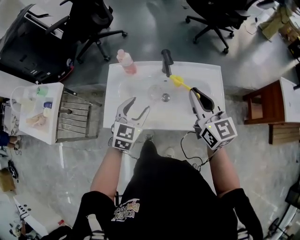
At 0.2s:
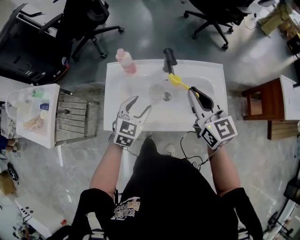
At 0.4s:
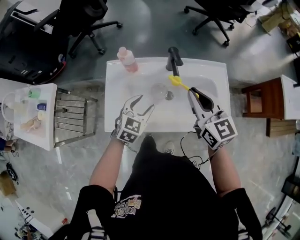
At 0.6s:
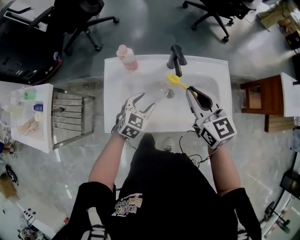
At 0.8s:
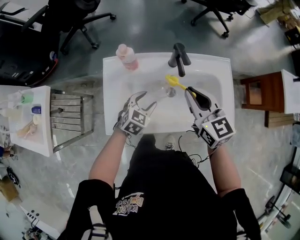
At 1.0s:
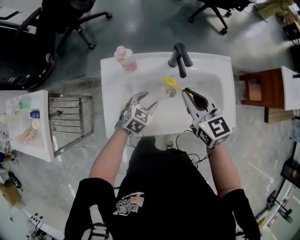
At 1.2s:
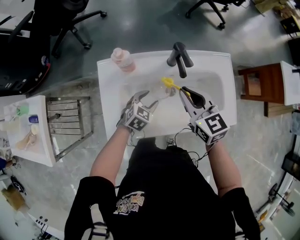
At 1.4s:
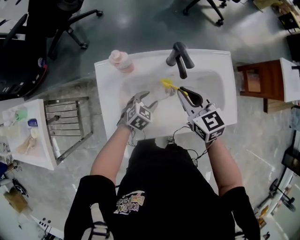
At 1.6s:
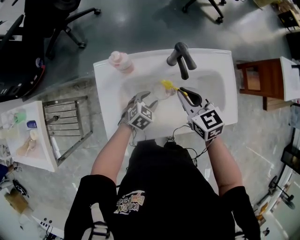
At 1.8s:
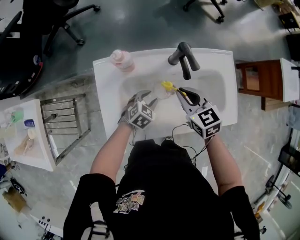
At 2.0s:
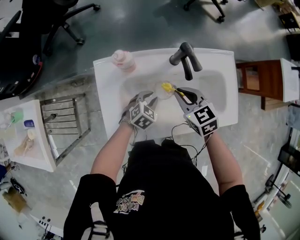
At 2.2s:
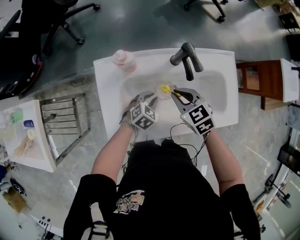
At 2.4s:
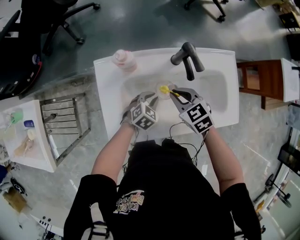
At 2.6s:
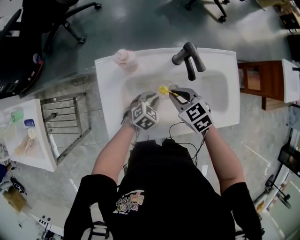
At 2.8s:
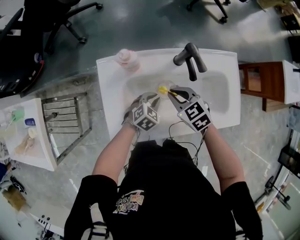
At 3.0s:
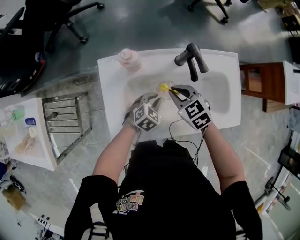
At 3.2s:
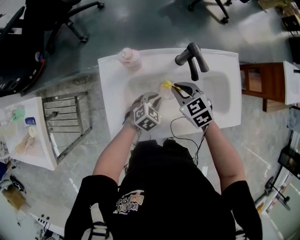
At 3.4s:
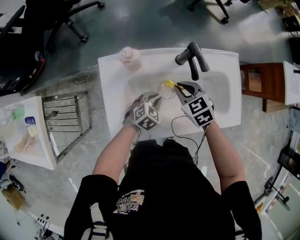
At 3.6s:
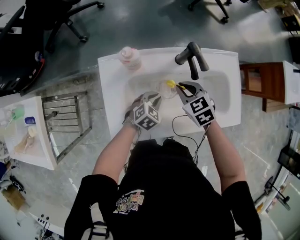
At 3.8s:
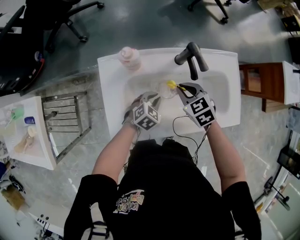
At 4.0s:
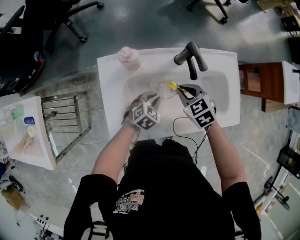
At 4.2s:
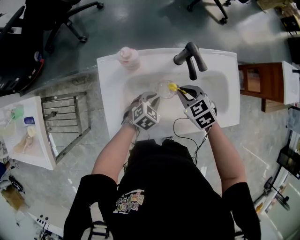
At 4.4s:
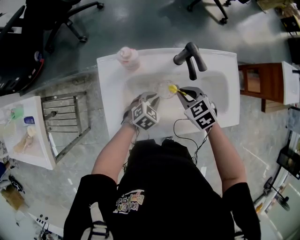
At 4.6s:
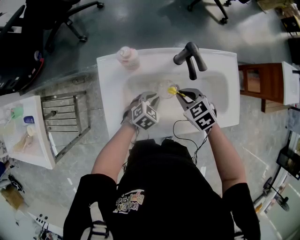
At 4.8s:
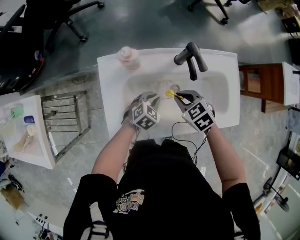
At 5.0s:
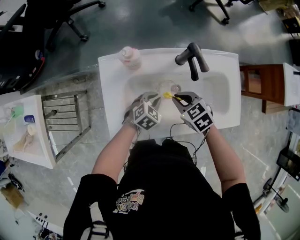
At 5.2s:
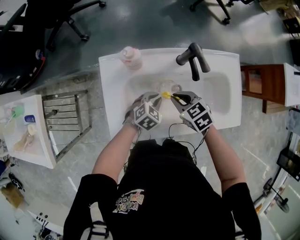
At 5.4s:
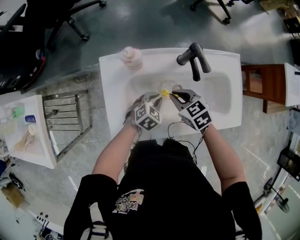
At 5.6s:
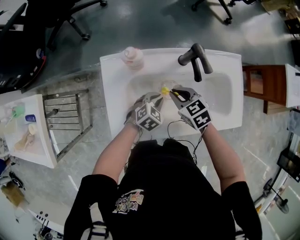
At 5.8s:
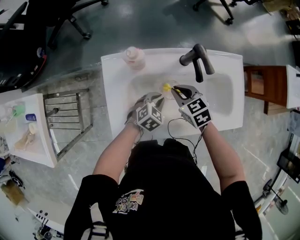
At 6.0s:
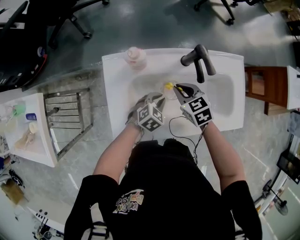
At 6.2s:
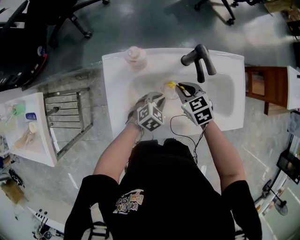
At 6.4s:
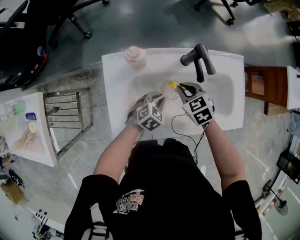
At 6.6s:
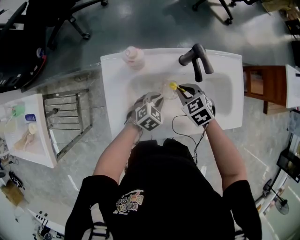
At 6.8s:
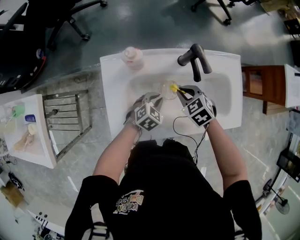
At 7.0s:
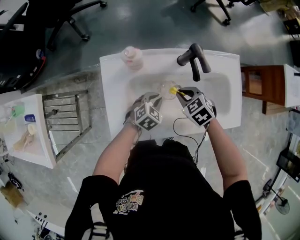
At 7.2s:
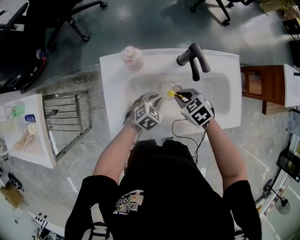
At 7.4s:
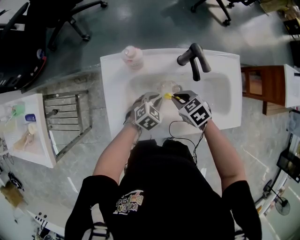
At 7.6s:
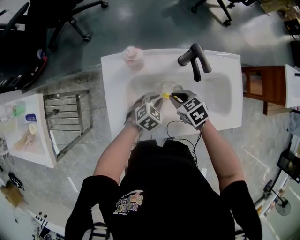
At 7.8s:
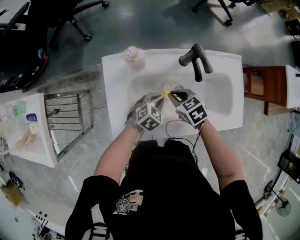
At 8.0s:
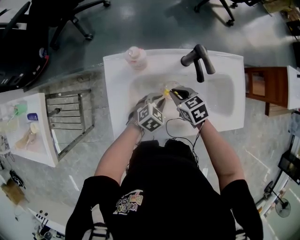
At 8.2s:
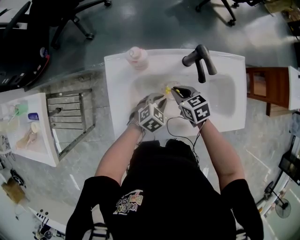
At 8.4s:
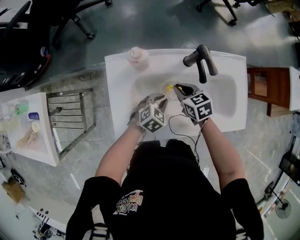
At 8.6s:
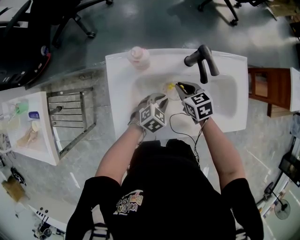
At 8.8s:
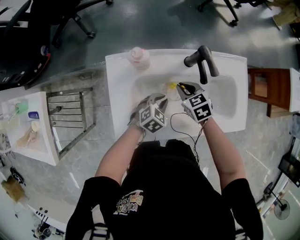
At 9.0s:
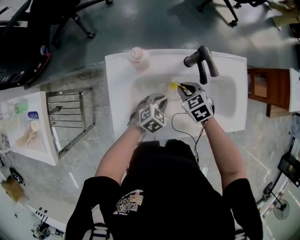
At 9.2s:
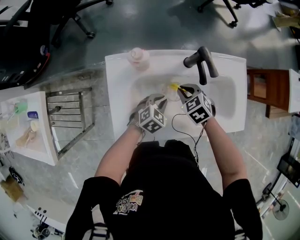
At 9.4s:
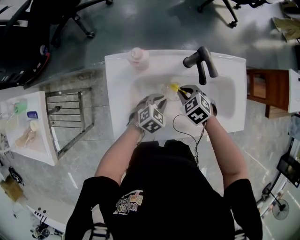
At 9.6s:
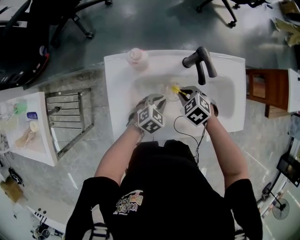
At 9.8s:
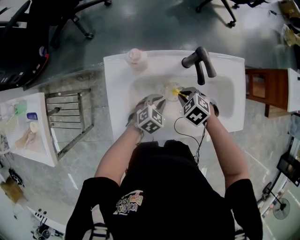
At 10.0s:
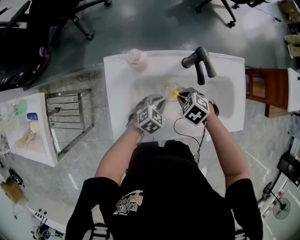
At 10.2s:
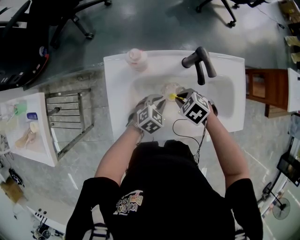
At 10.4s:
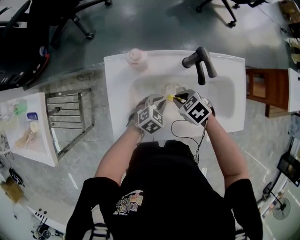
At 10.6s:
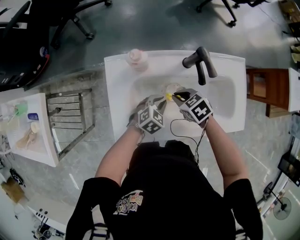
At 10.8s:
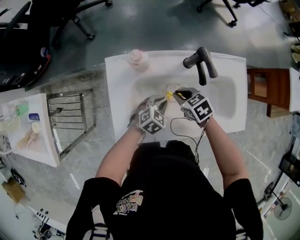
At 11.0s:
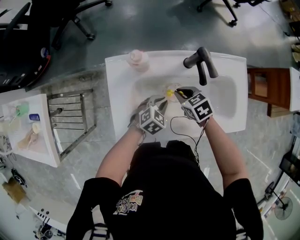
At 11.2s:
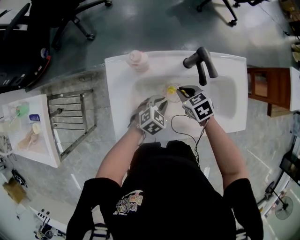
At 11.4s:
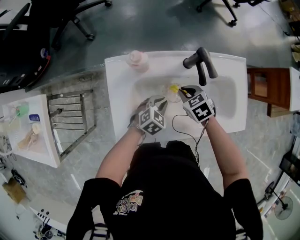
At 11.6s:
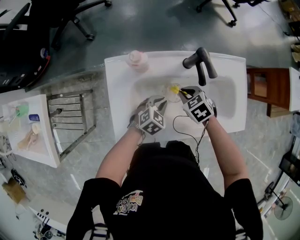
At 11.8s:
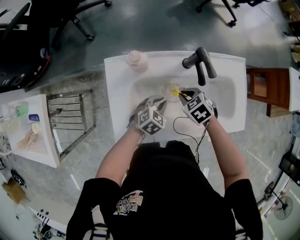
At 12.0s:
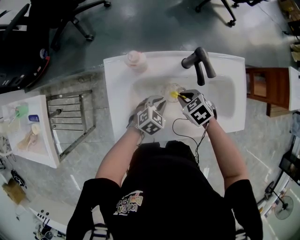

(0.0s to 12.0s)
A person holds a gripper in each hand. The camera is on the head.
0.0s - 1.6s: The right gripper moves downward, to the left and forward, roughly 20 cm, and rotates some 30 degrees. The left gripper travels downward by about 25 cm, and rotates roughly 40 degrees.
1.6s - 3.0s: The left gripper closes. Meanwhile the right gripper travels downward and to the left by about 10 cm, and turns by some 20 degrees.
3.0s - 7.6s: The grippers stay close to where they were, moving slightly.
7.6s - 9.0s: The right gripper shifts by about 5 cm.
9.0s - 10.4s: The right gripper shifts by approximately 5 cm.
10.4s - 12.0s: The grippers move only a little.

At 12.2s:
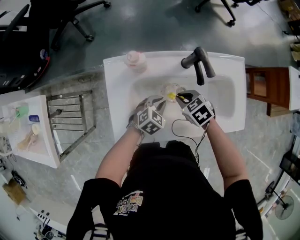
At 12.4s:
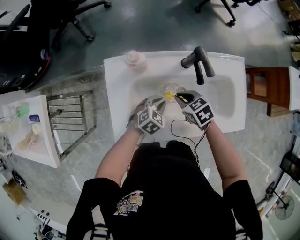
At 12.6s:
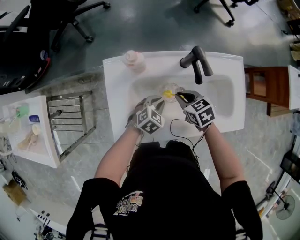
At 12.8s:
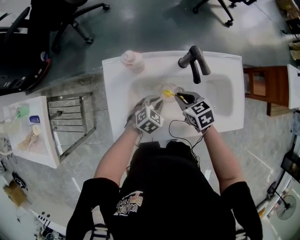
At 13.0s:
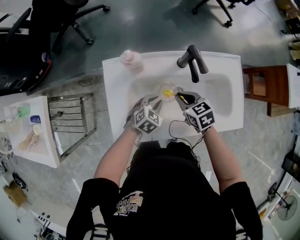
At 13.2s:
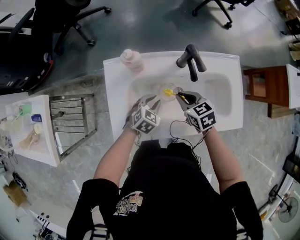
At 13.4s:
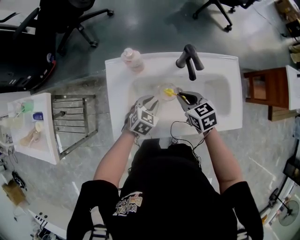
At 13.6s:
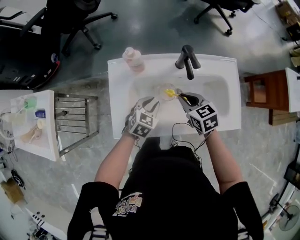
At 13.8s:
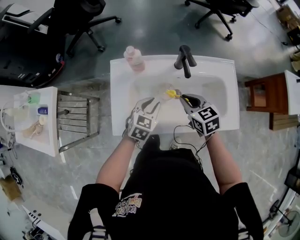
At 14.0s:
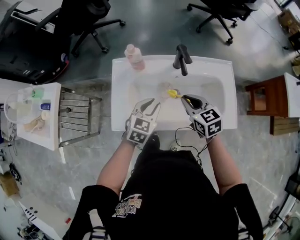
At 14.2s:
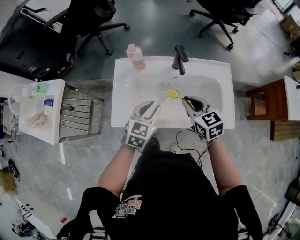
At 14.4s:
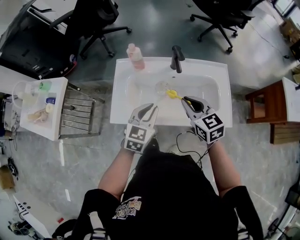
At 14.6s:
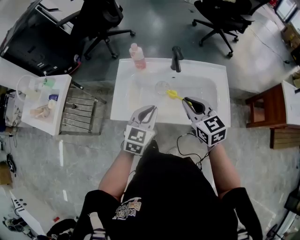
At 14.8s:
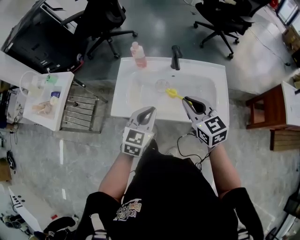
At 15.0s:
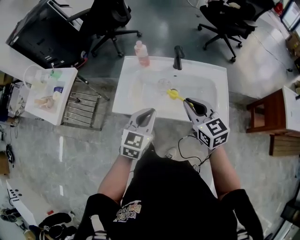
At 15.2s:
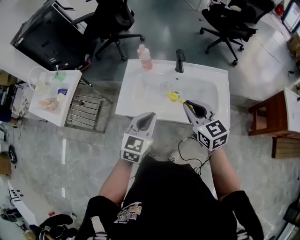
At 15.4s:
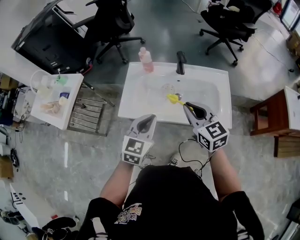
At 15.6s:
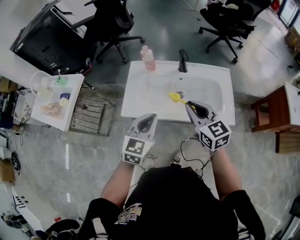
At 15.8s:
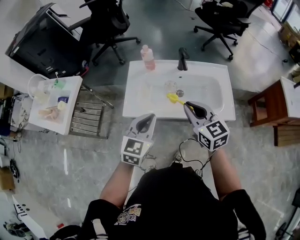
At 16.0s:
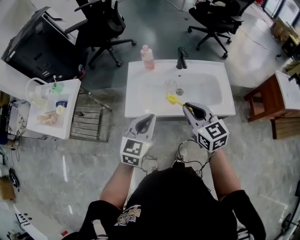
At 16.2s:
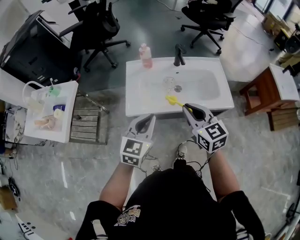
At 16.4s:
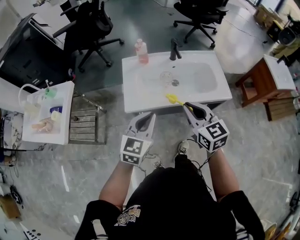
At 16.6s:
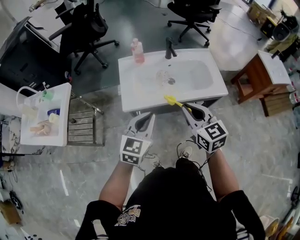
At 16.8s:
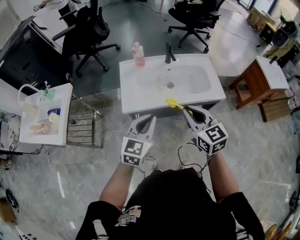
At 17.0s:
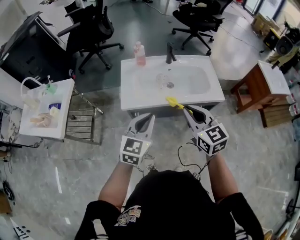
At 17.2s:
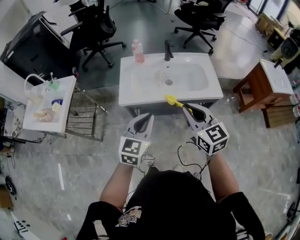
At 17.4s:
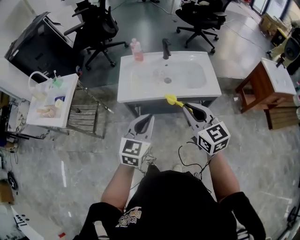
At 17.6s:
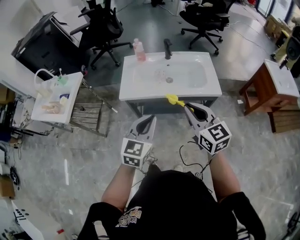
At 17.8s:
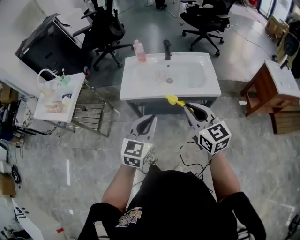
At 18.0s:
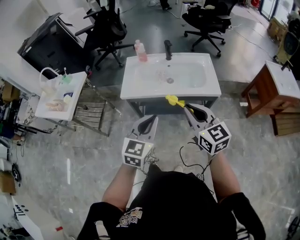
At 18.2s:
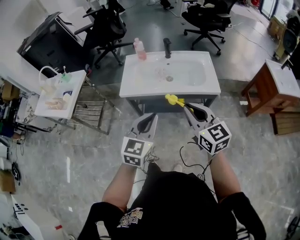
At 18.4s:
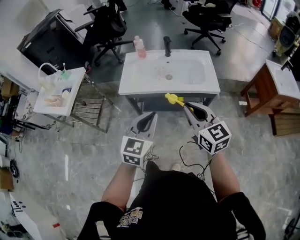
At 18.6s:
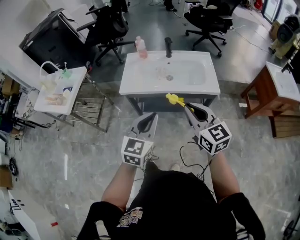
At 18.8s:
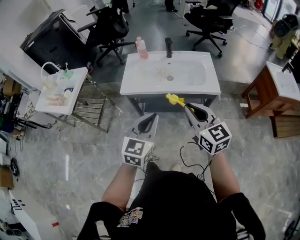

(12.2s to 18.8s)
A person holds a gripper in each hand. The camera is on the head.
12.2s - 13.8s: The grippers both shift upward by roughly 10 cm. The right gripper swivels roughly 30 degrees. Meanwhile the left gripper rotates roughly 20 degrees.
13.8s - 15.4s: The right gripper shifts about 25 cm upward and backward, and changes its angle by about 30 degrees. Meanwhile the left gripper shifts roughly 25 cm backward and upward, and rotates approximately 20 degrees.
15.4s - 17.2s: The grippers both shift backward by roughly 15 cm.
17.2s - 18.8s: The two grippers go roughly 15 cm backward and to the right.

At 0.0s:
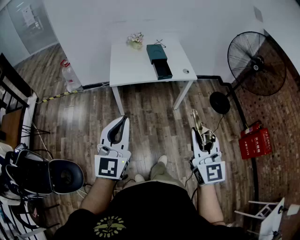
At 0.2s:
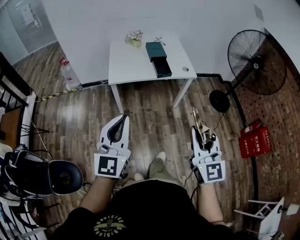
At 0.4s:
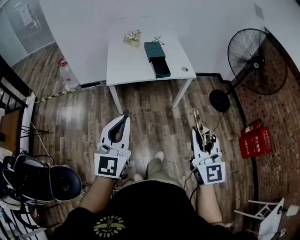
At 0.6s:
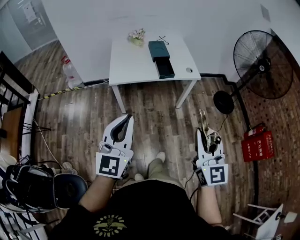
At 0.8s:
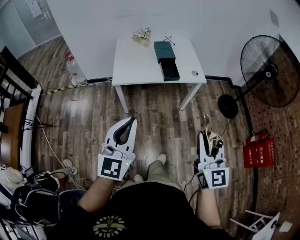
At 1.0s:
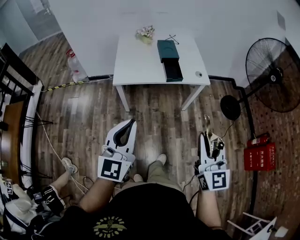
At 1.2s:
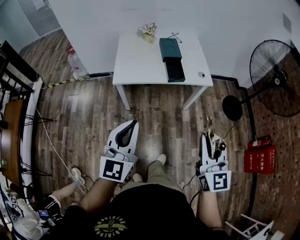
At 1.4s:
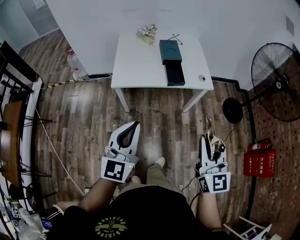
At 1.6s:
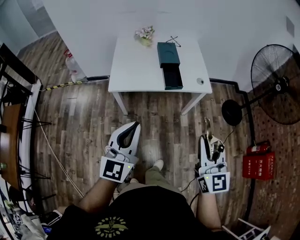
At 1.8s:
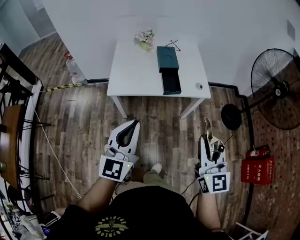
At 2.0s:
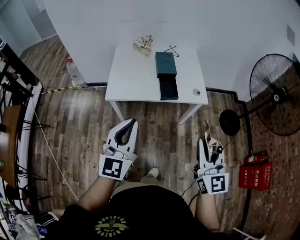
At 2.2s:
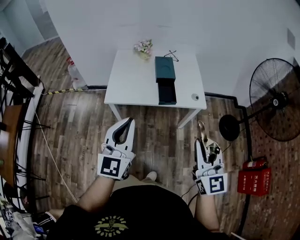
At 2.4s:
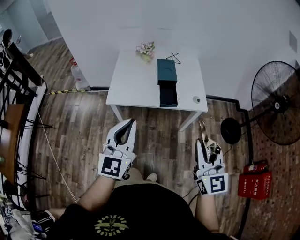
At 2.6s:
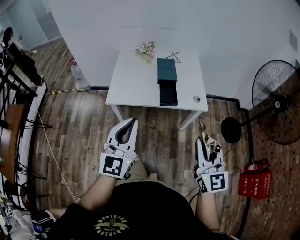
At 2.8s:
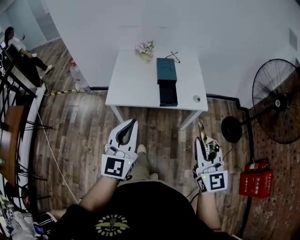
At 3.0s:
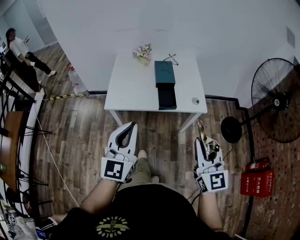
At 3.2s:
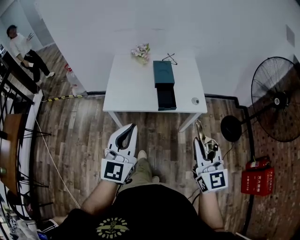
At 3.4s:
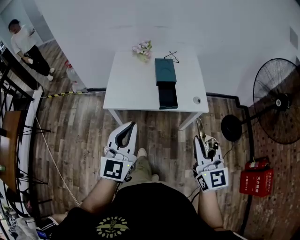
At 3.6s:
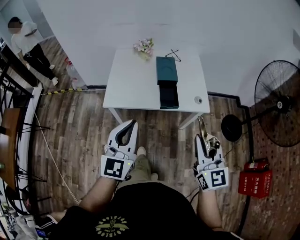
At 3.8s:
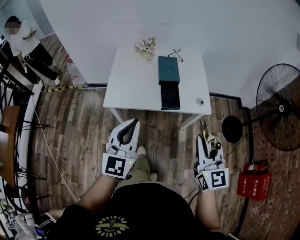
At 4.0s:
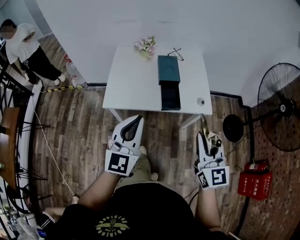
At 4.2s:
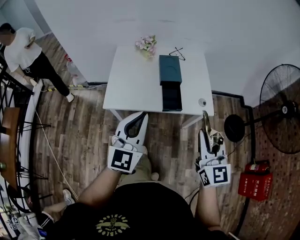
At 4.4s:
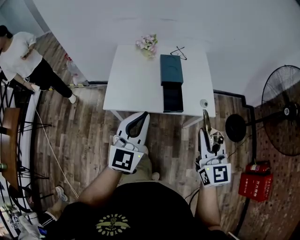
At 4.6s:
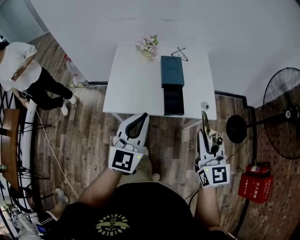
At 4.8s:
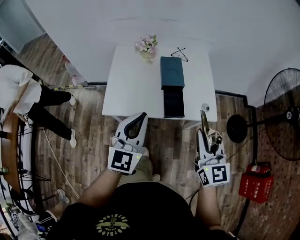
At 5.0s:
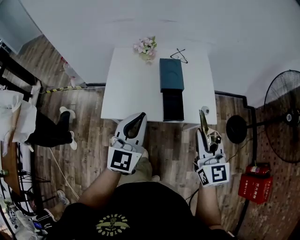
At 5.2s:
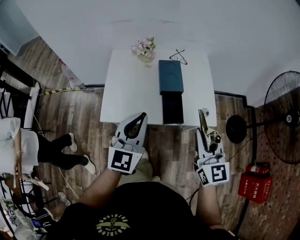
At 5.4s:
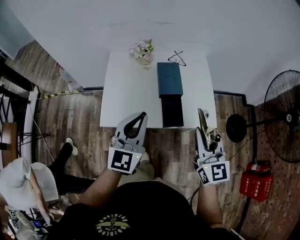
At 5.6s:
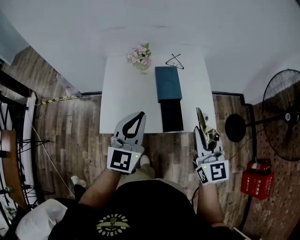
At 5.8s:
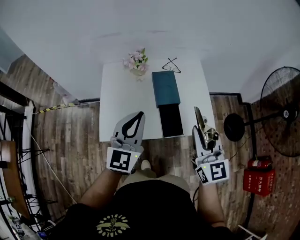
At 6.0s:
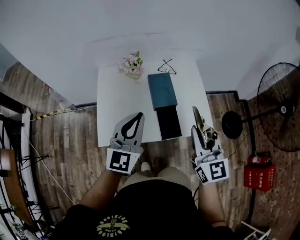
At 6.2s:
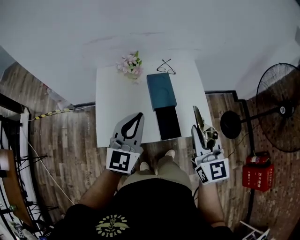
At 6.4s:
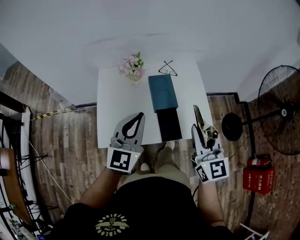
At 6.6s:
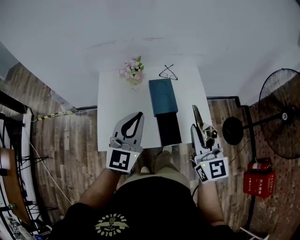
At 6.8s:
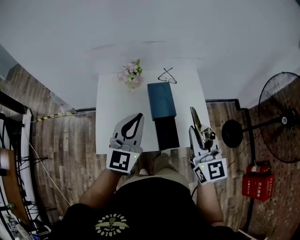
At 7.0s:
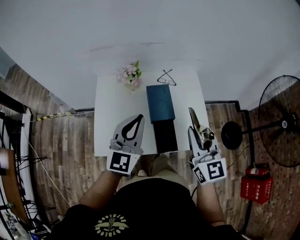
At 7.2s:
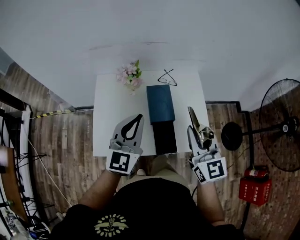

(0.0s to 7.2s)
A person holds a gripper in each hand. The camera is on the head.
0.0s - 1.4s: The grippers both shift forward by roughly 20 cm.
1.4s - 2.8s: Both grippers travel together forward and to the right, roughly 10 cm.
2.8s - 4.4s: Both grippers travel together forward, about 15 cm.
4.4s - 5.8s: Both grippers travel together forward, some 20 cm.
5.8s - 7.2s: Both grippers travel together forward, some 10 cm.
